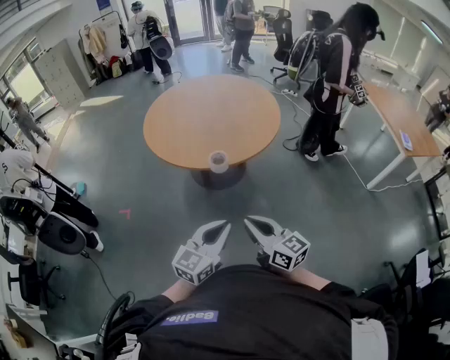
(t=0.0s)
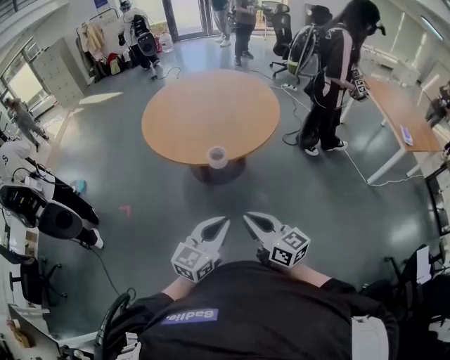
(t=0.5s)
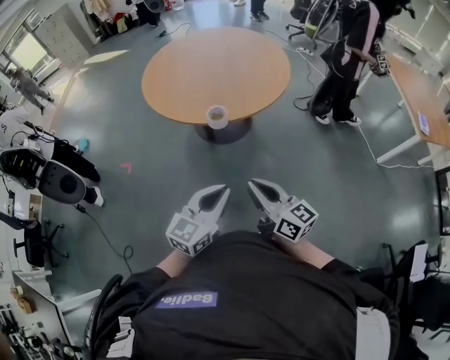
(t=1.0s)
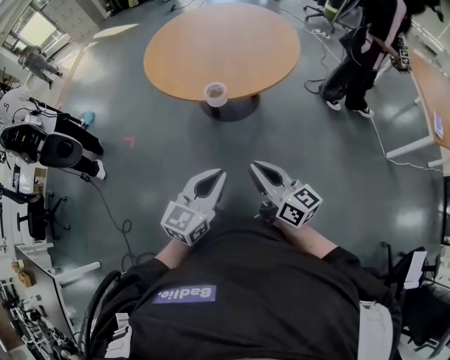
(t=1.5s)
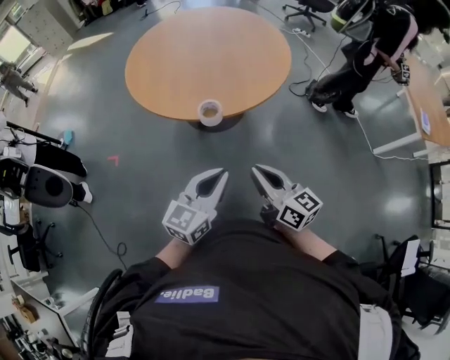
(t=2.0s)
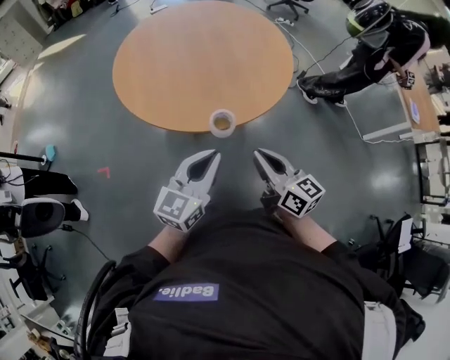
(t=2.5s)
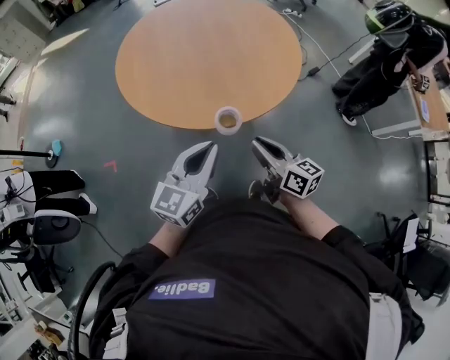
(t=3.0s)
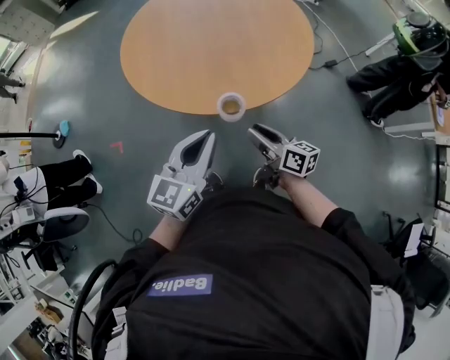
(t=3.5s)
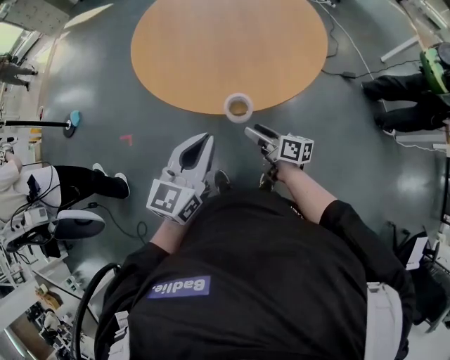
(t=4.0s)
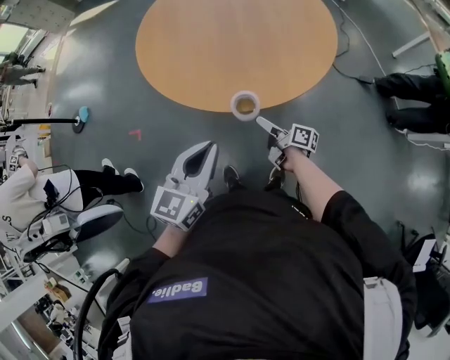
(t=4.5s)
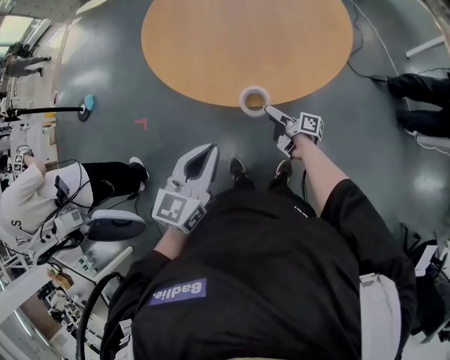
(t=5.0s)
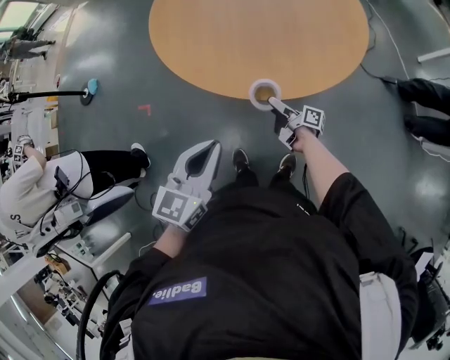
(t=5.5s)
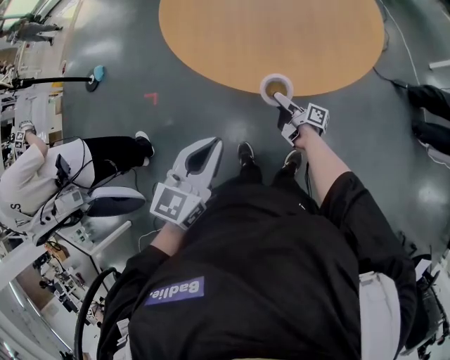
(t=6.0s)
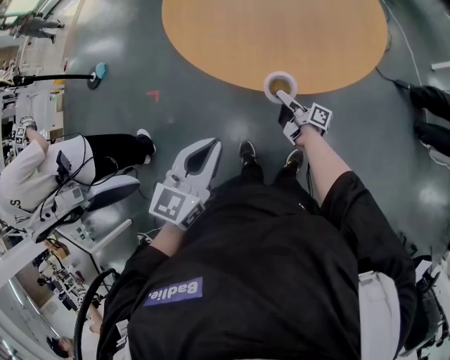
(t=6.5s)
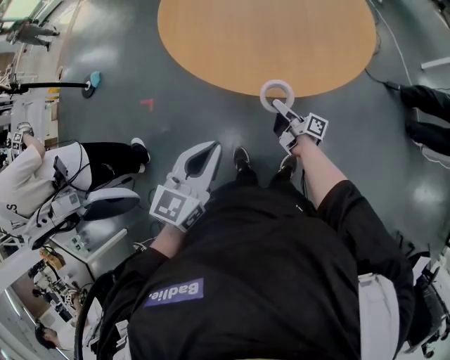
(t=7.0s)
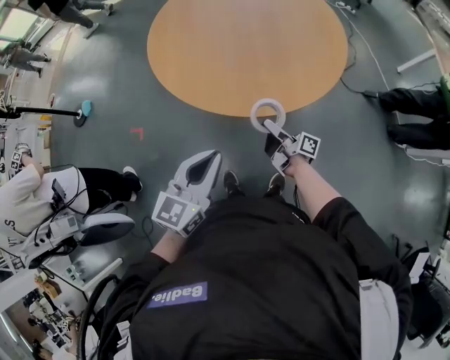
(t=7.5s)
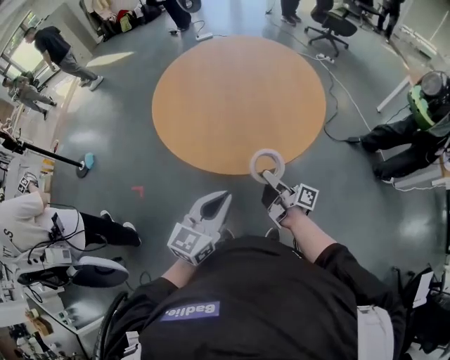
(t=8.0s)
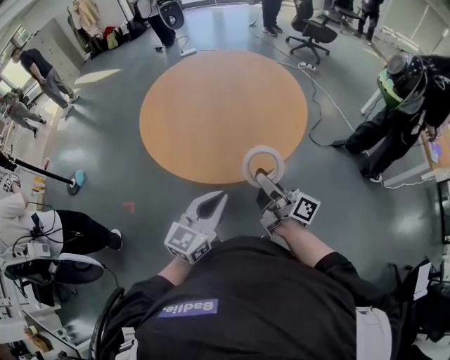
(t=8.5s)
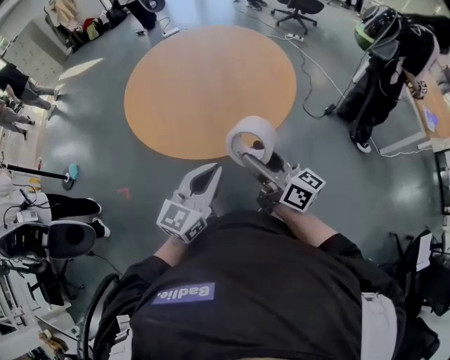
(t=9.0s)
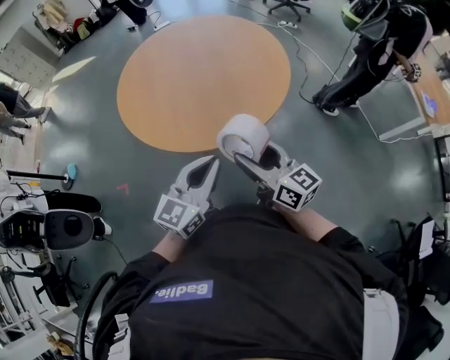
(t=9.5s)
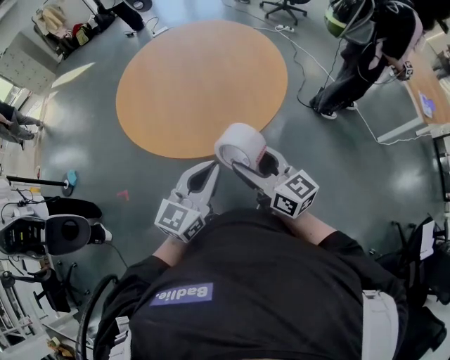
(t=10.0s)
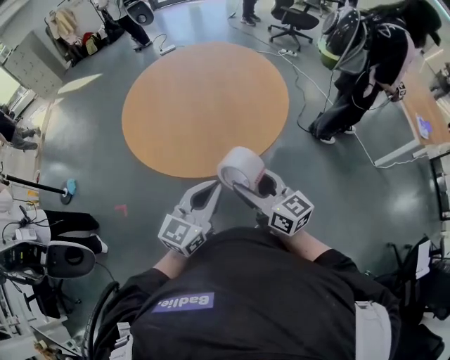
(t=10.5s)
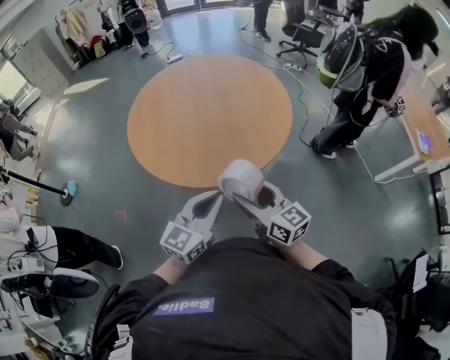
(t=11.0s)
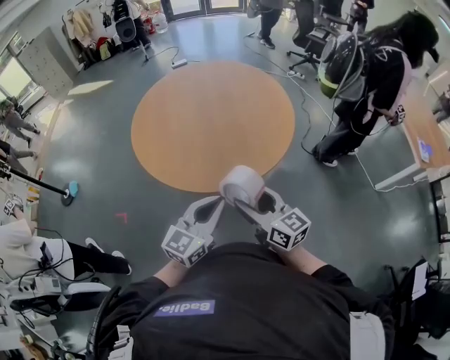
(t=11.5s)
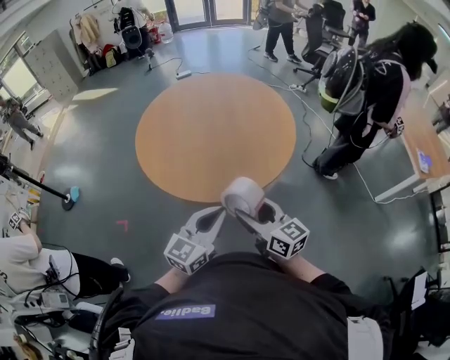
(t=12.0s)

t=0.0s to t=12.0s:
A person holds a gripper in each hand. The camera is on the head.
t=0.0s to t=2.0s: The right gripper shifts about 10 cm forward and to the right. The left gripper heads forward, covering roughly 10 cm.
t=2.0s to t=4.0s: The left gripper shifts about 20 cm forward and to the left. Meanwhile the right gripper moves forward, downward and to the left, roughly 25 cm, turns by some 30 degrees, and opens up.
t=4.0s to t=6.0s: The right gripper shifts some 15 cm downward and forward, rotates some 30 degrees, and opens. The left gripper heads to the left, covering roughly 5 cm.
t=6.0s to t=8.0s: The right gripper is displaced upward by some 20 cm, turns by approximately 20 degrees, and closes up.
t=8.0s to t=10.0s: The left gripper moves to the right, about 5 cm, while the right gripper is displaced upward and backward by roughly 15 cm, and rotates around the line of its fingers by about 60 degrees, counterclockwise from behind.
t=10.0s to t=12.0s: The grippers make only small movements.

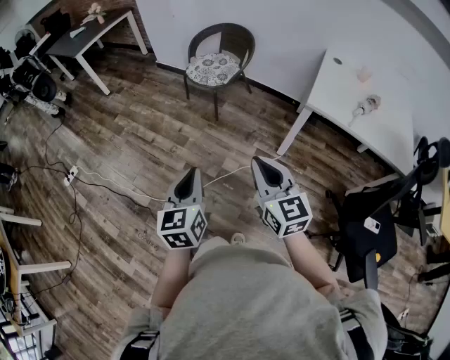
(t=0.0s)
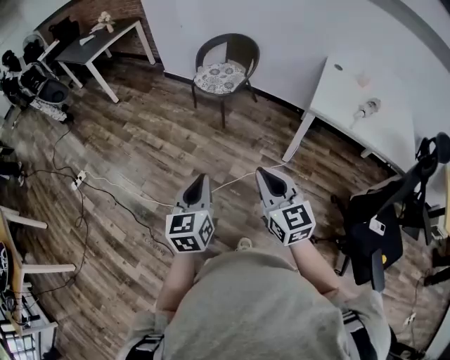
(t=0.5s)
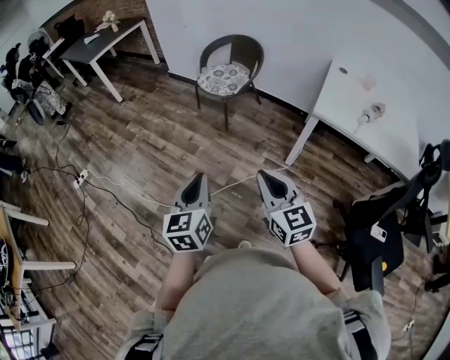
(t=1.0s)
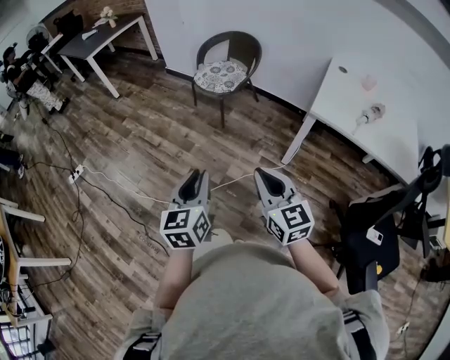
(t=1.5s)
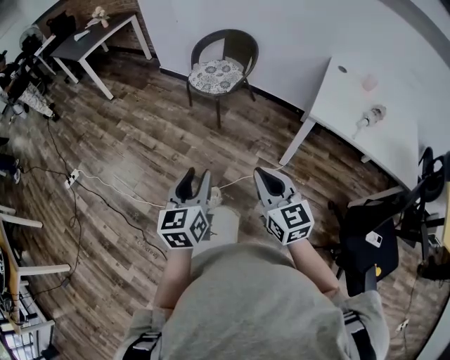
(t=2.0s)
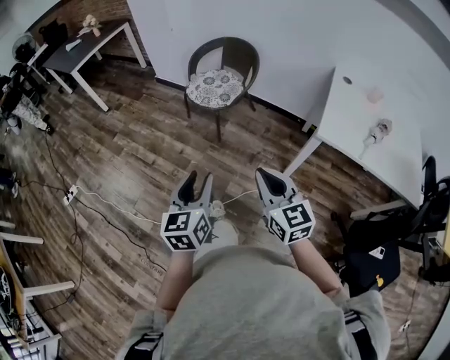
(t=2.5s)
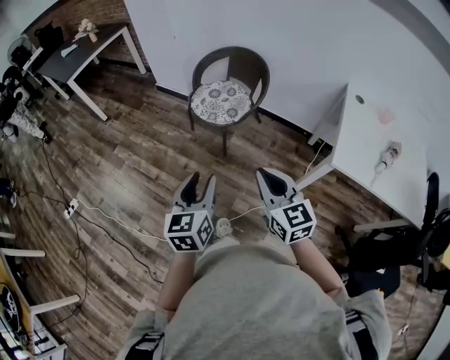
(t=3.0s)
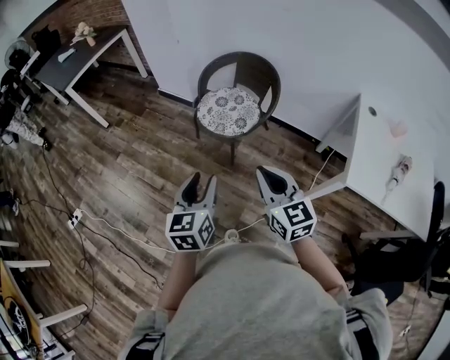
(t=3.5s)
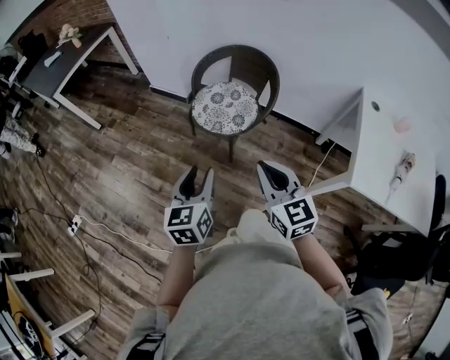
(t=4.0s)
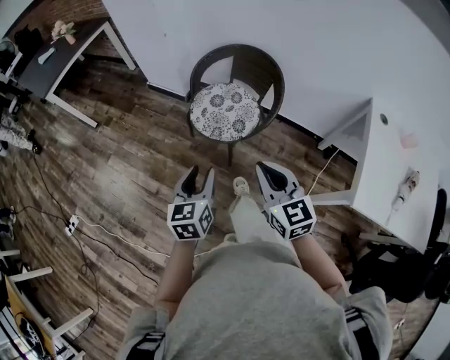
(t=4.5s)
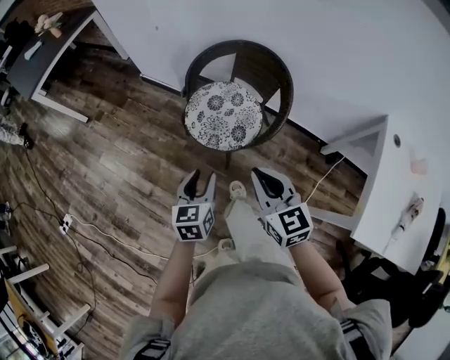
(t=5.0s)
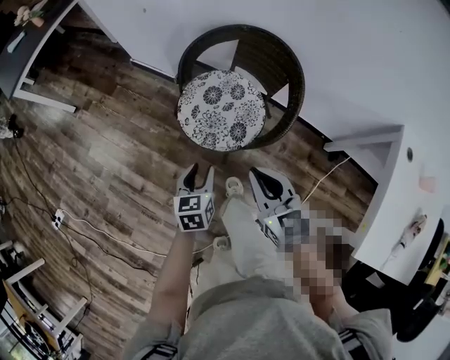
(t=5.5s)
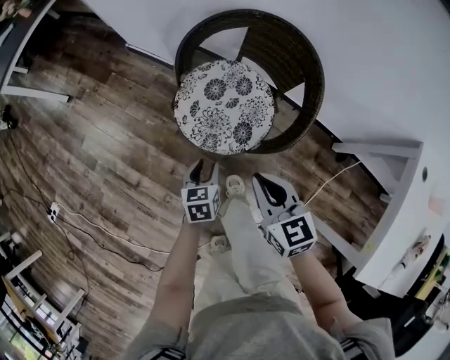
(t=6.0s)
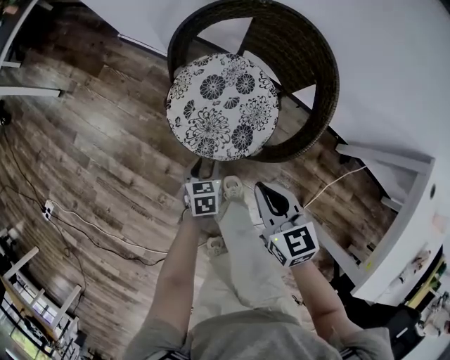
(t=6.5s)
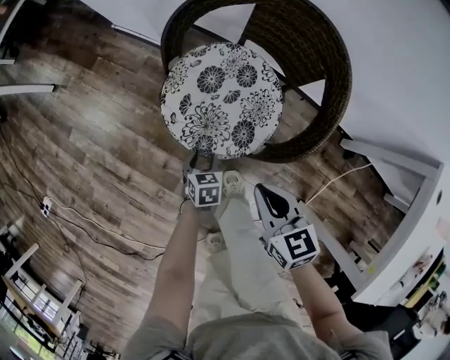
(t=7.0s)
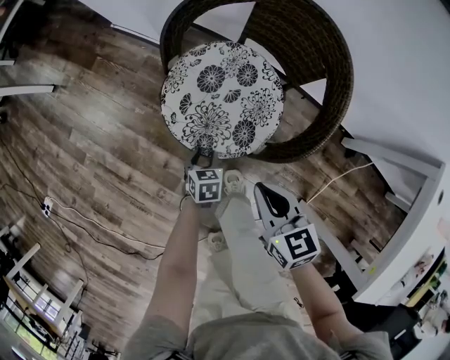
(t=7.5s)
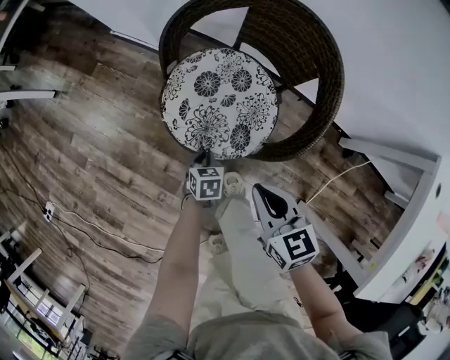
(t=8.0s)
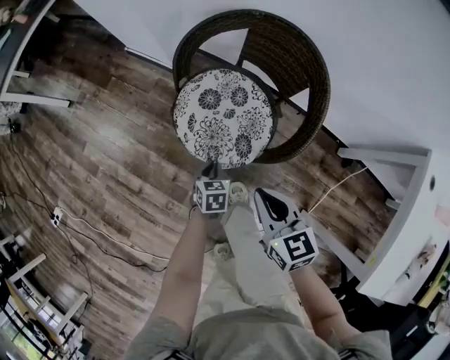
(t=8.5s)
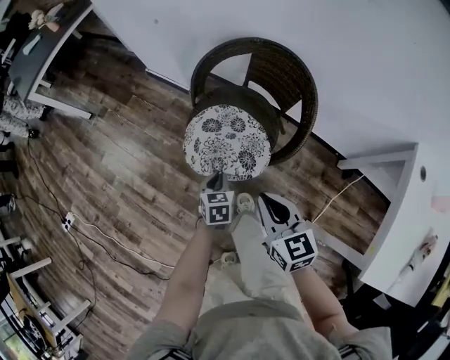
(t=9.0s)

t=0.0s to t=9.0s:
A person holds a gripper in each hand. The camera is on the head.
t=0.0s to t=2.0s: The right gripper goes backward and returns, some 5 cm each way; the left gripper opens up.
t=2.0s to t=4.5s: Both grippers are carried forward, roughly 50 cm.
t=4.5s to t=7.0s: The grippers both shift downward and forward by roughly 50 cm. The left gripper tips its fingers downward by some 40 degrees, while the right gripper changes its angle by about 30 degrees.
t=7.0s to t=9.0s: The left gripper goes roughly 20 cm upward, and closes; the right gripper travels upward and backward by roughly 20 cm.

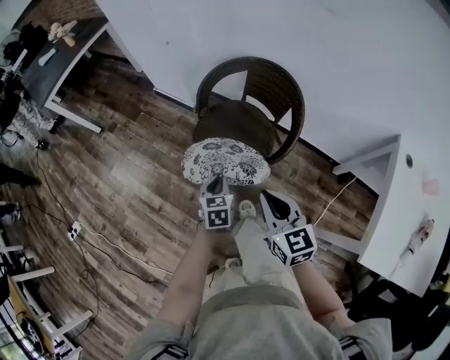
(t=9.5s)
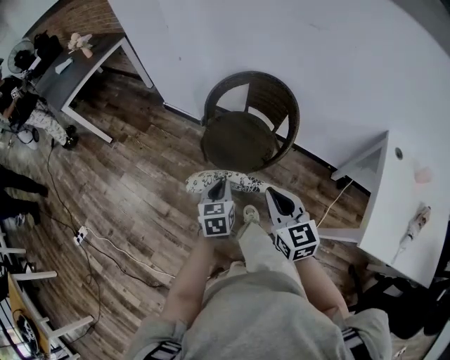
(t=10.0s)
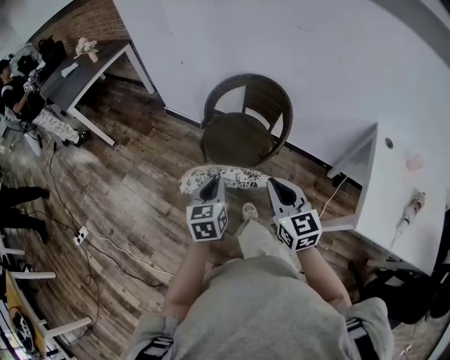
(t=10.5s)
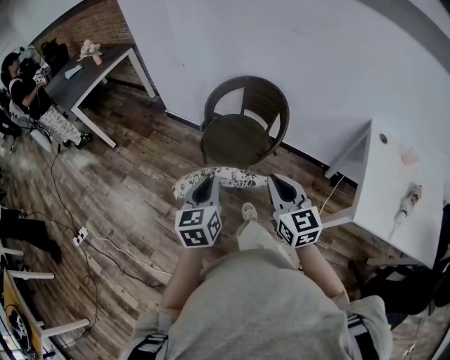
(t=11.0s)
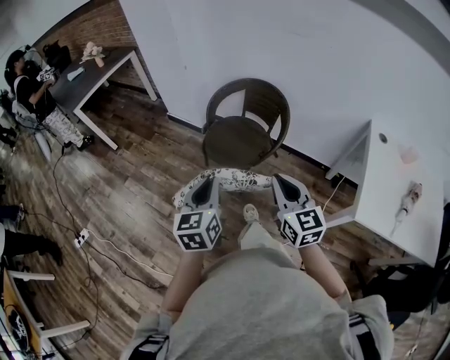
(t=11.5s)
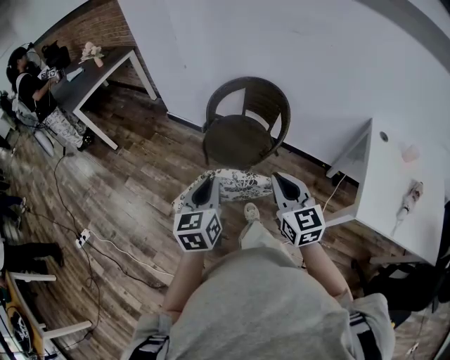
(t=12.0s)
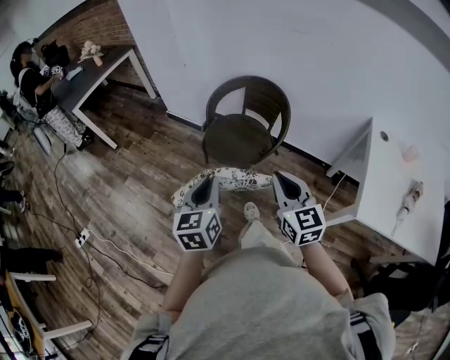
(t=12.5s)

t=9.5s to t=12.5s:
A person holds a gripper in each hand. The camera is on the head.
t=9.5s to t=11.0s: The right gripper moves backward and upward, about 20 cm, while the left gripper is displaced upward and backward by about 35 cm, and rotates about 20 degrees.
t=11.0s to t=12.5s: The grippers make only small movements.

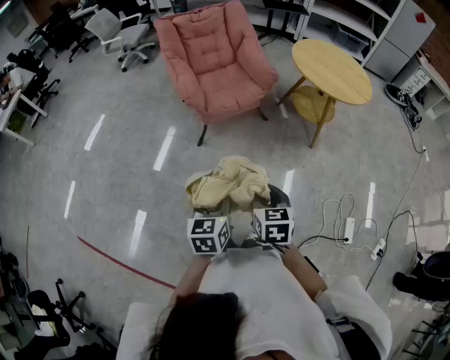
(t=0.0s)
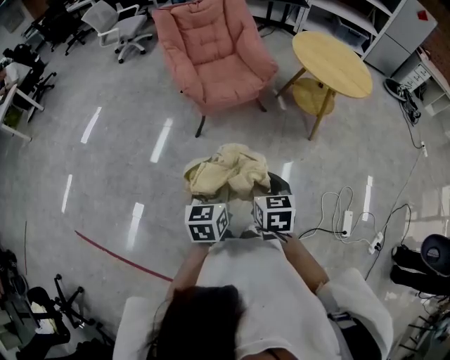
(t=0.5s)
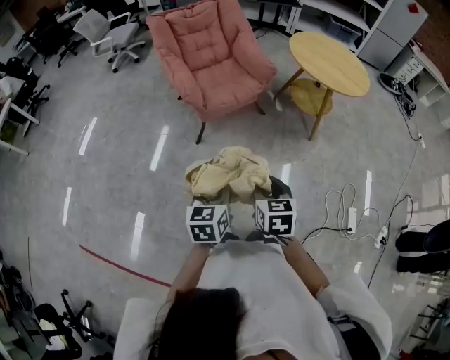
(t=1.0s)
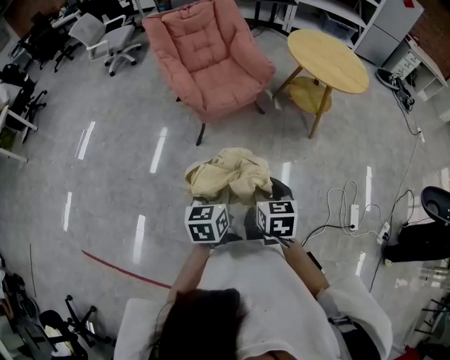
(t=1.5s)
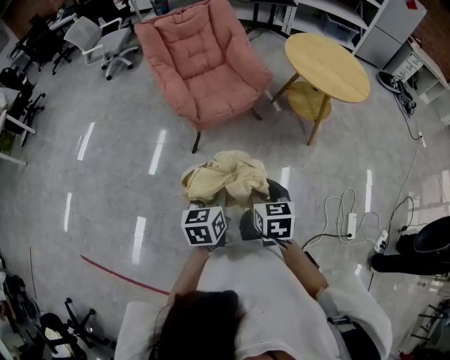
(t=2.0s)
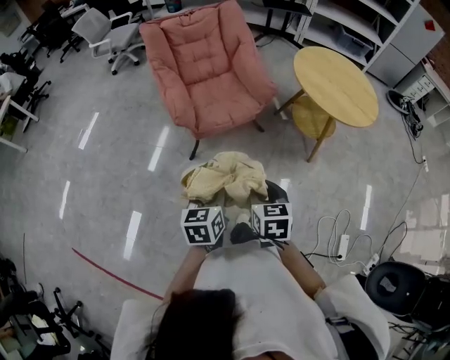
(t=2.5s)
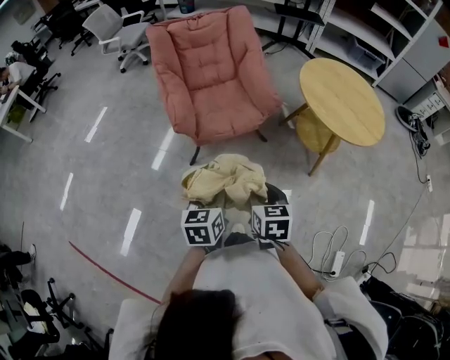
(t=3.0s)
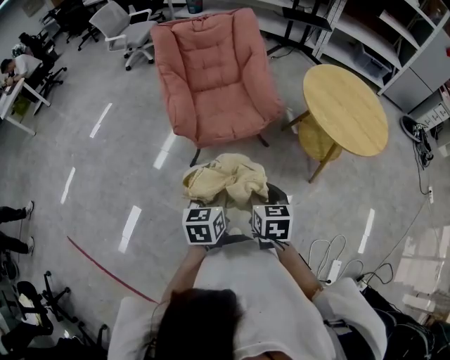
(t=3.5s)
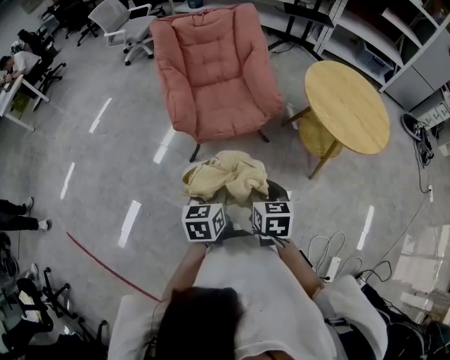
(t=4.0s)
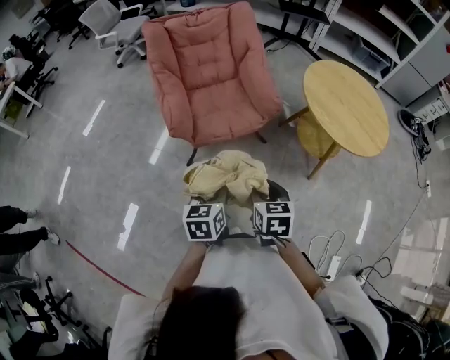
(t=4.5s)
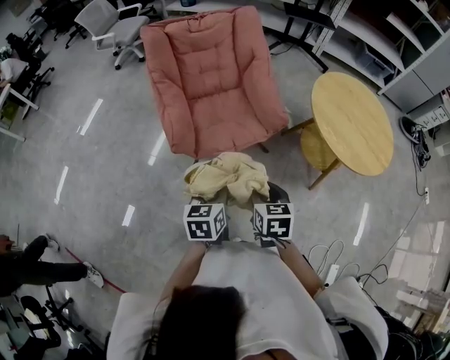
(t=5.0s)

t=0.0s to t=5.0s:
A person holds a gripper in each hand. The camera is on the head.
t=0.0s to t=2.5s: Both grippers move forward, approximately 20 cm.
t=2.5s to t=5.0s: The grippers both shift forward by about 20 cm.
